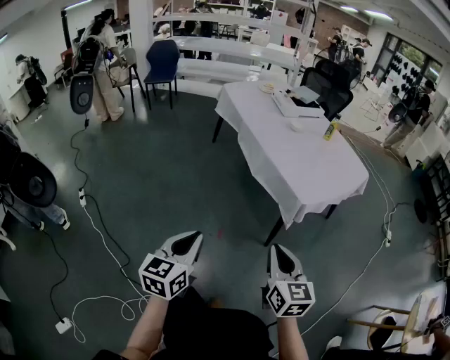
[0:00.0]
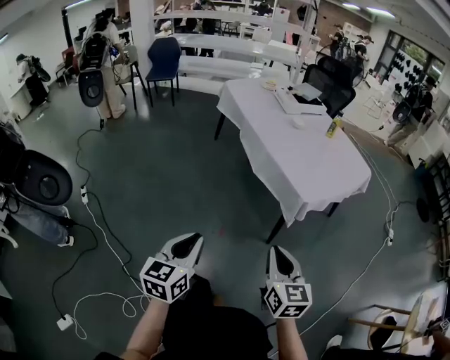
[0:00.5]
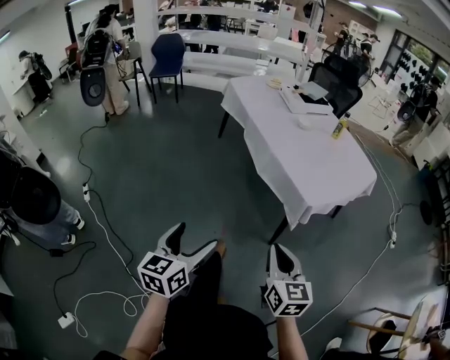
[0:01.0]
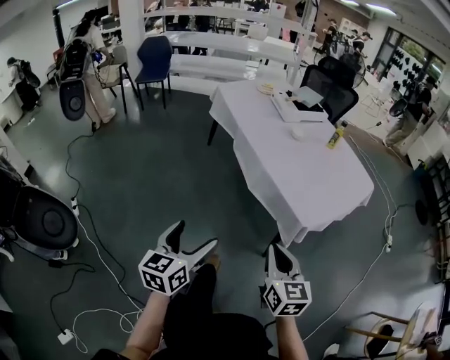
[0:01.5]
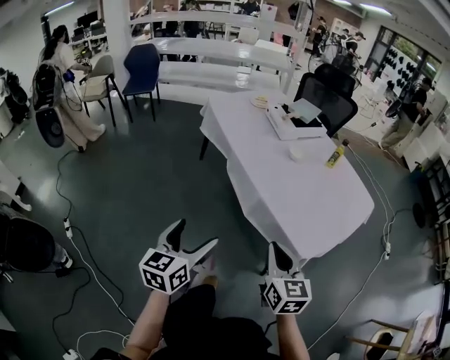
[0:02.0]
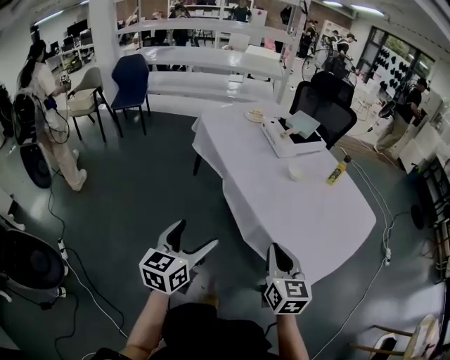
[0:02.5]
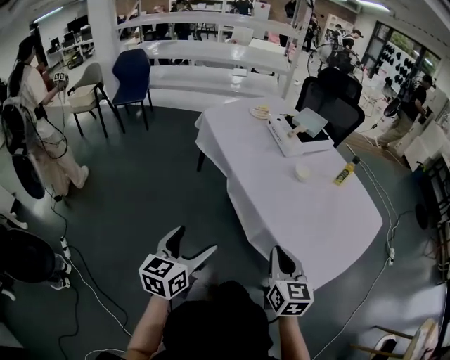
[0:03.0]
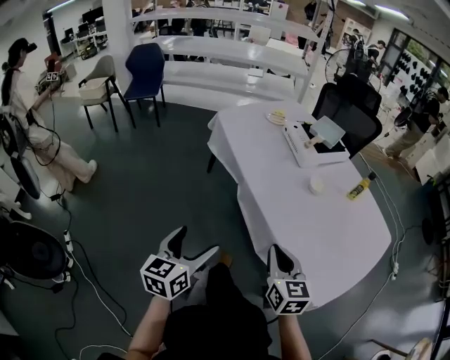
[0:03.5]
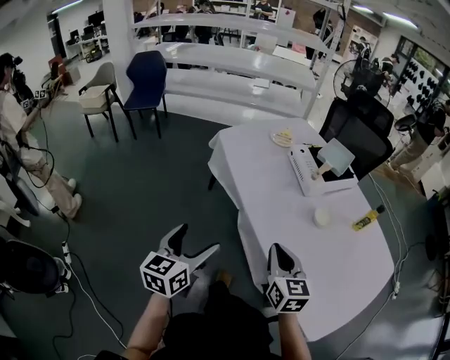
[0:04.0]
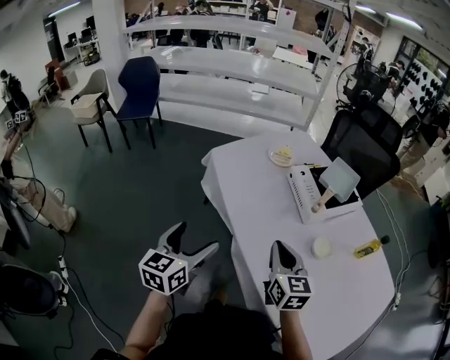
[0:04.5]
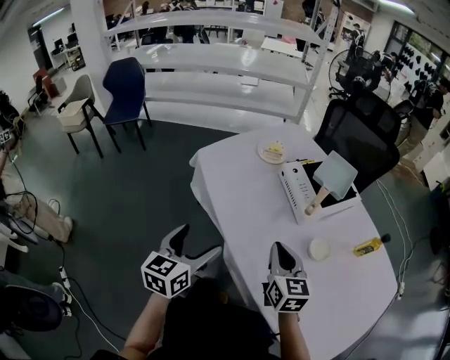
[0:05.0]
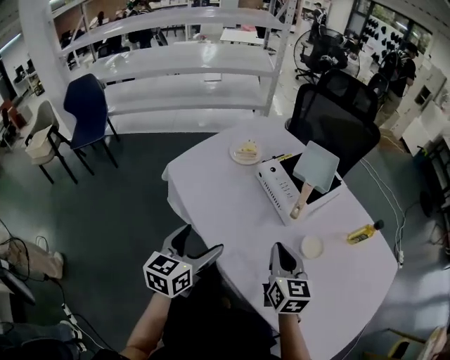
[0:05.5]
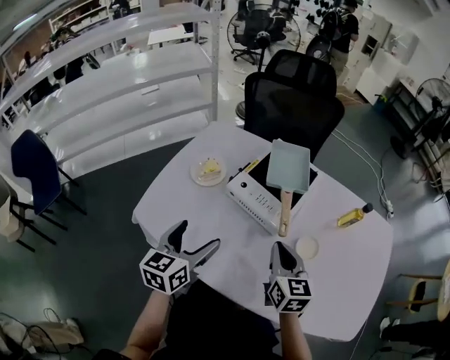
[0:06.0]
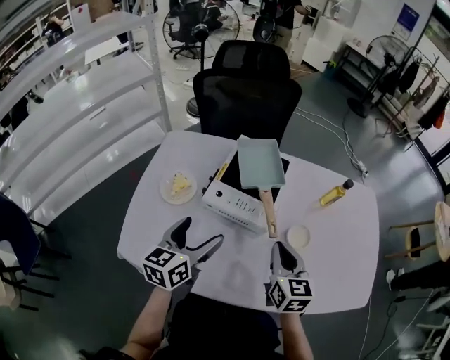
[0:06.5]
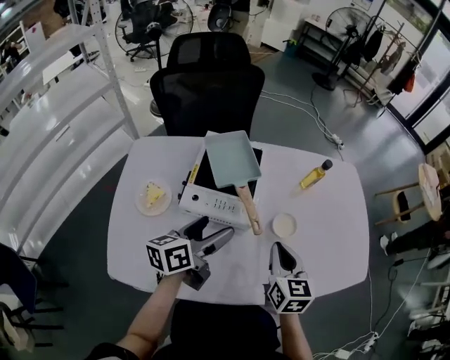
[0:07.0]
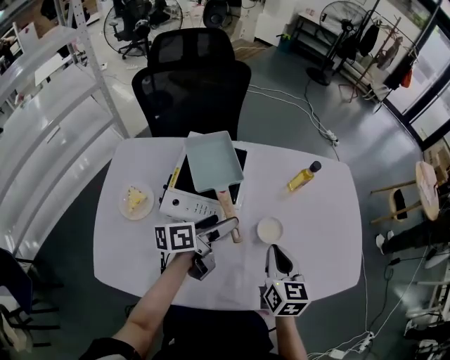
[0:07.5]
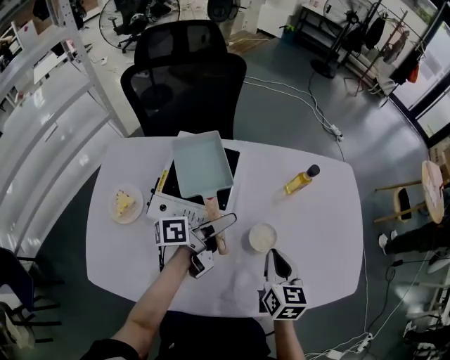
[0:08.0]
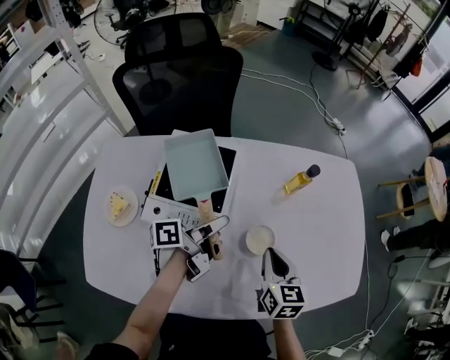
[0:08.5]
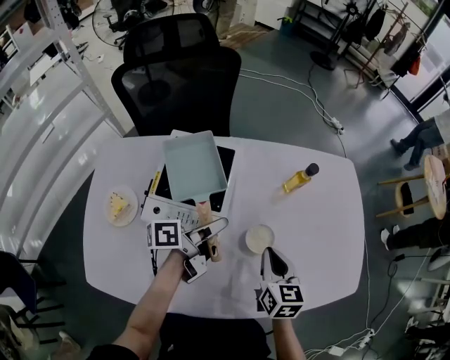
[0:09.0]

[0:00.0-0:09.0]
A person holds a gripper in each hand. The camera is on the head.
0.0 to 2.0 s: Both grippers move forward, about 30 cm. The left gripper opens its fingers.
2.0 to 4.5 s: The two grippers travel together, forward, roughly 50 cm.
4.5 to 7.0 s: The right gripper changes place by some 20 cm, and rotates about 70 degrees. Meanwhile the left gripper ends up approximately 40 cm from where it was, and turns by about 80 degrees.
7.0 to 9.0 s: Both grippers move forward, to the right and downward, roughly 15 cm. The left gripper rotates approximately 30 degrees, and closes.

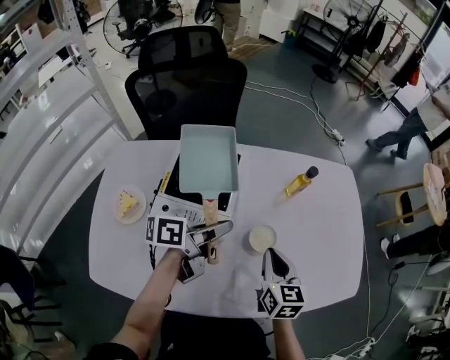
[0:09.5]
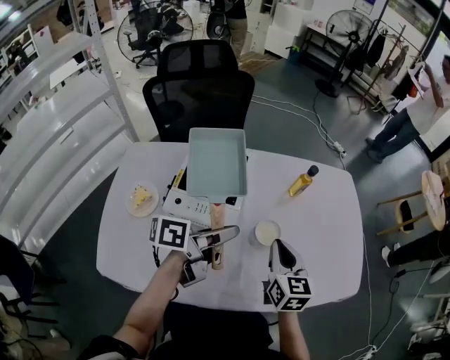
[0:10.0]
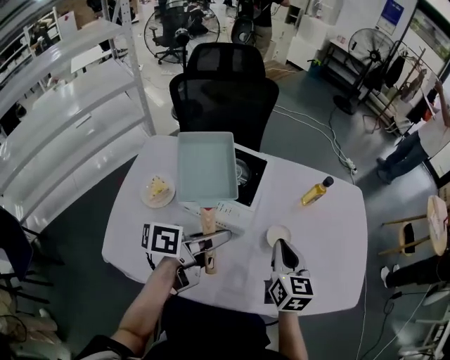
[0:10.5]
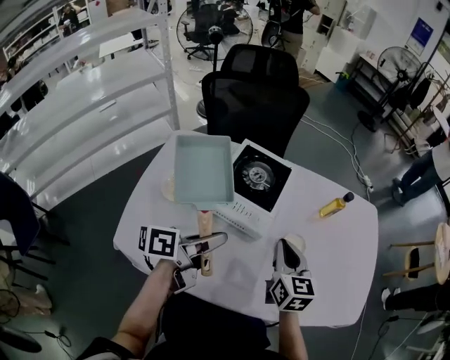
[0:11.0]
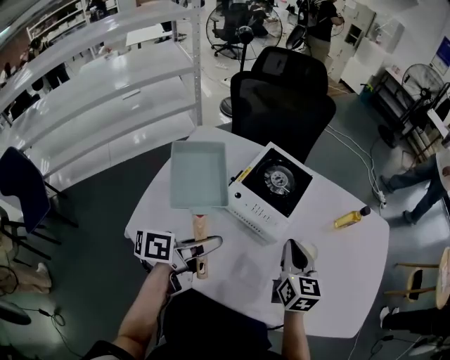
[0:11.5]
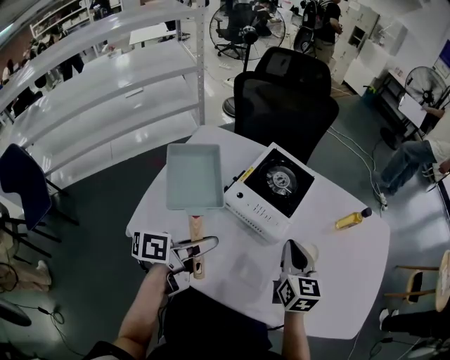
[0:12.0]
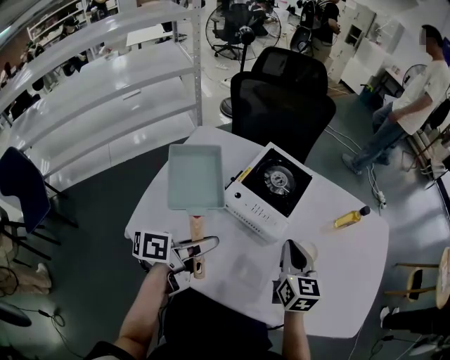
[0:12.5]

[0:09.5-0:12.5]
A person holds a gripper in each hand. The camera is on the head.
9.5 to 11.0 s: The left gripper is displaced backward and to the left by roughly 15 cm, while the right gripper travels to the left and upward by approximately 10 cm.
11.0 to 12.5 s: The left gripper moves to the left, approximately 5 cm.

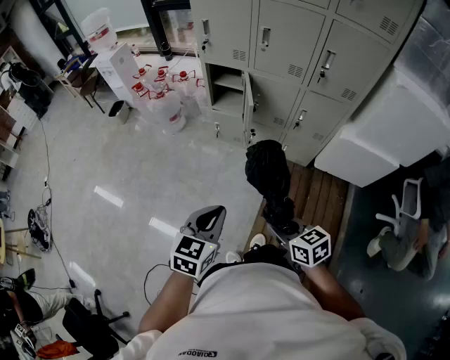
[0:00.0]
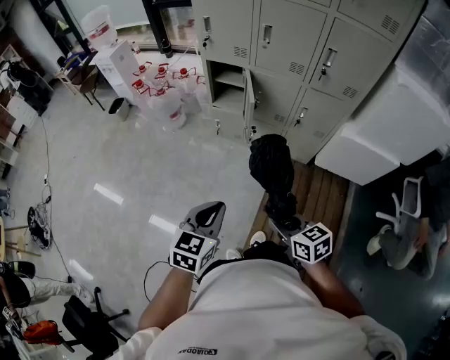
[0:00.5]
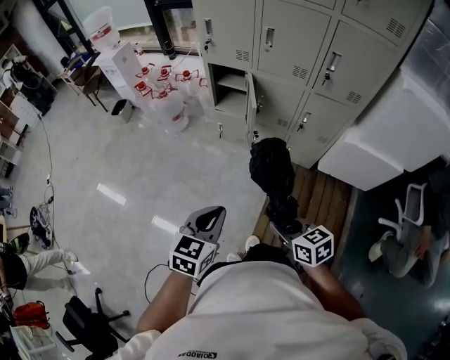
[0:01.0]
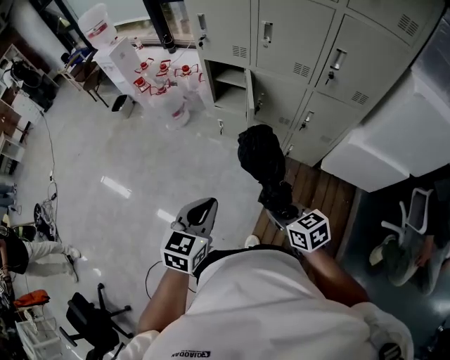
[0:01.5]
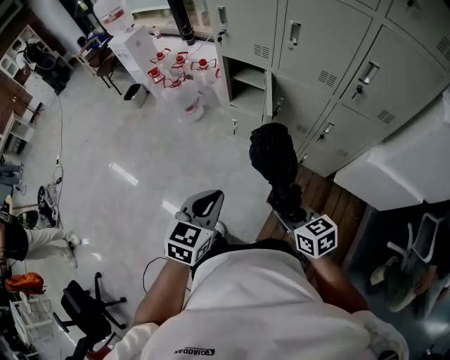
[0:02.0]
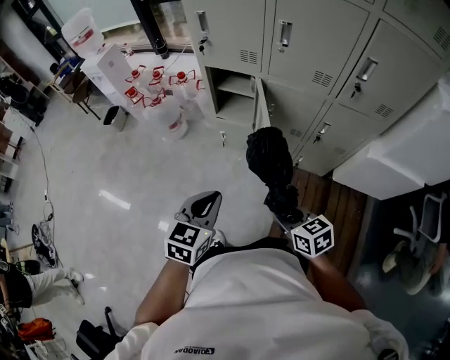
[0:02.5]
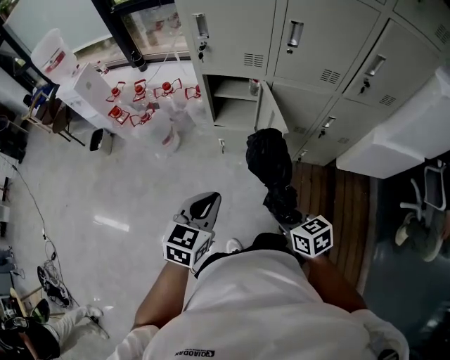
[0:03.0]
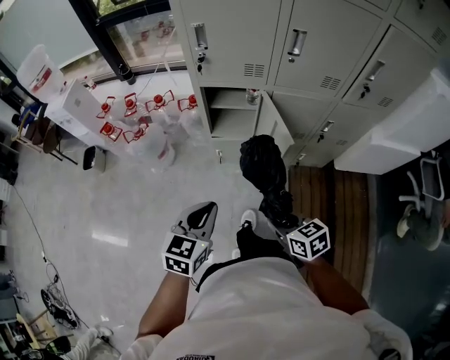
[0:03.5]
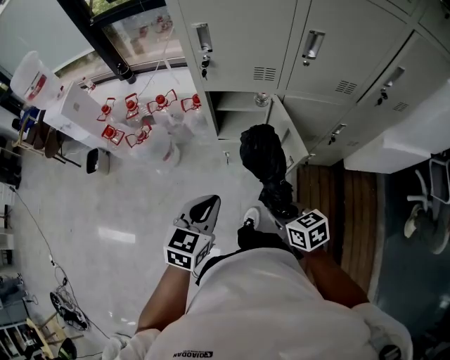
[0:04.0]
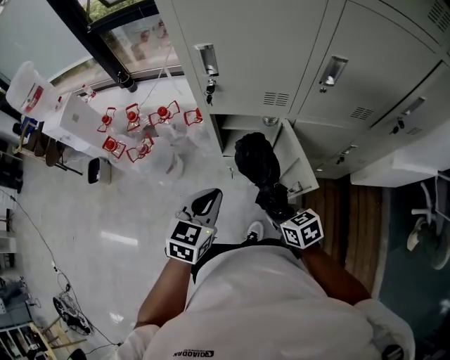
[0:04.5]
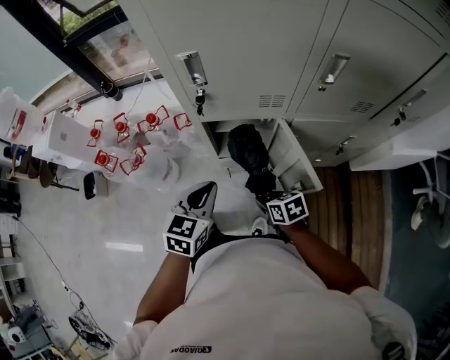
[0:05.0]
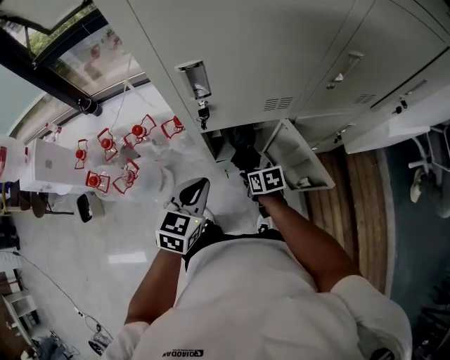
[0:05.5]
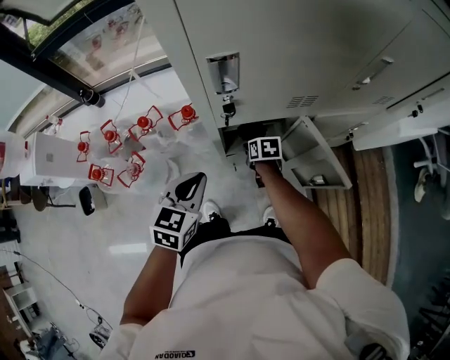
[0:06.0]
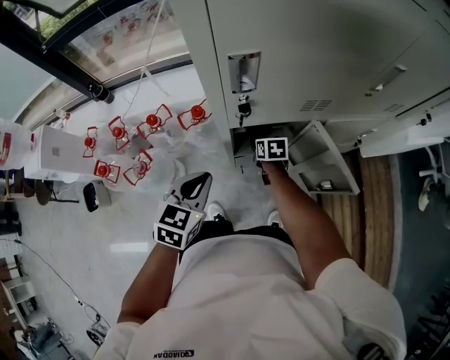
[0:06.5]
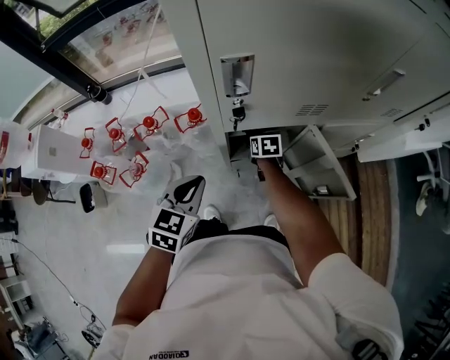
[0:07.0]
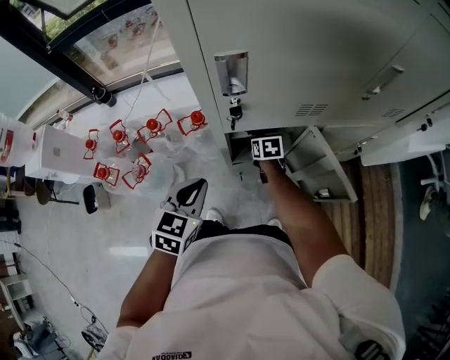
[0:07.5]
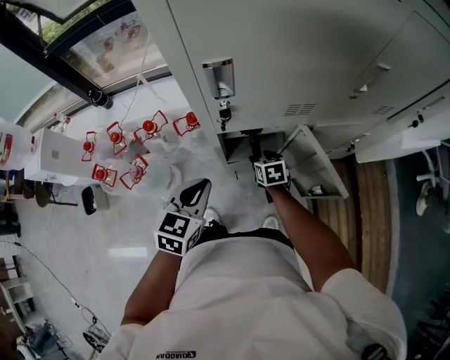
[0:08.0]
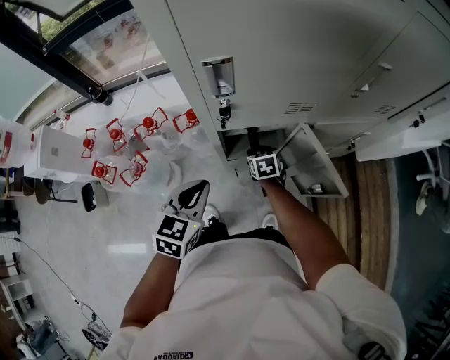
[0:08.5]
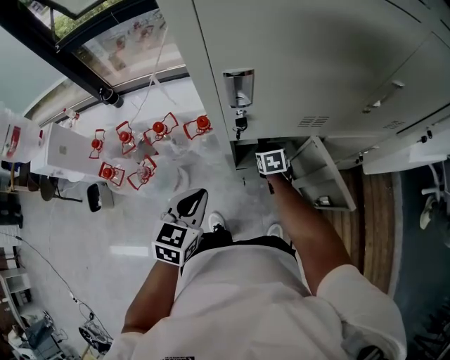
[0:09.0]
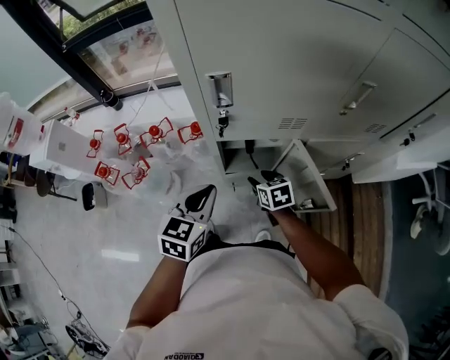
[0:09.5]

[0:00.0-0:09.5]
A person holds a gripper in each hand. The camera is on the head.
0.0 to 2.0 s: The two grippers go about 15 cm forward.
2.0 to 4.0 s: Both grippers move forward and to the left, some 35 cm. The right gripper turns by approximately 20 degrees. Meanwhile the left gripper rotates some 20 degrees.
4.0 to 5.5 s: The left gripper moves forward, some 25 cm. The right gripper is displaced forward and downward by some 35 cm, and rotates approximately 30 degrees.
5.5 to 7.5 s: The left gripper is displaced to the left by roughly 5 cm. Meanwhile the right gripper travels forward by about 15 cm, and opens up.
7.5 to 9.5 s: The left gripper goes roughly 10 cm to the right and upward; the right gripper goes forward and backward, roughly 15 cm each way, reversing 2 times.

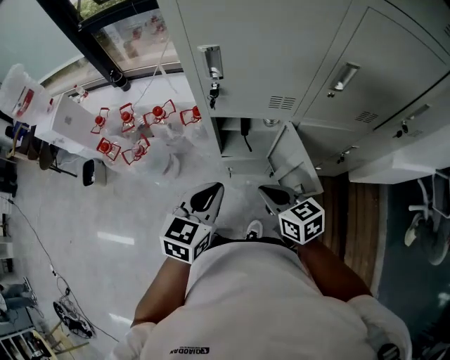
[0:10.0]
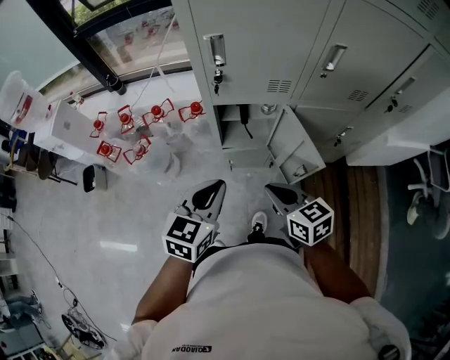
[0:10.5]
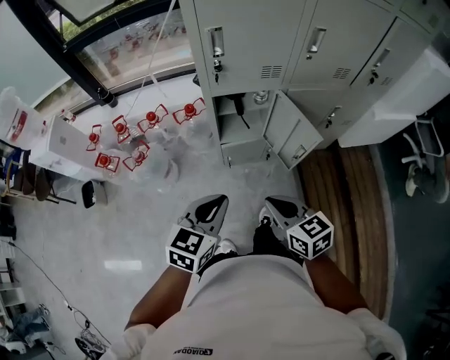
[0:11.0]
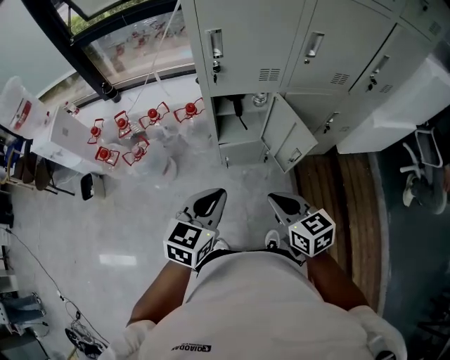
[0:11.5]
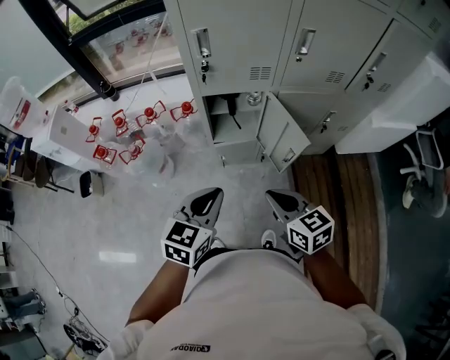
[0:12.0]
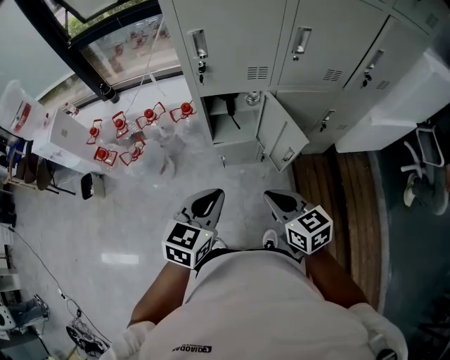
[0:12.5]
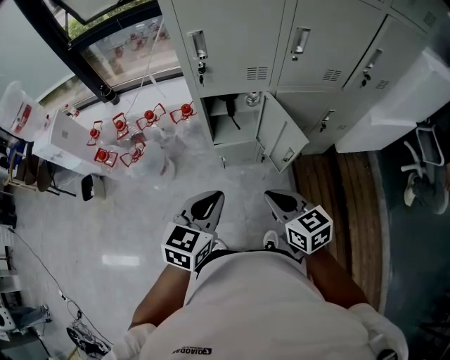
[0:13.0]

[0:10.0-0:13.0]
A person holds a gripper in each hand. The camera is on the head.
10.0 to 11.5 s: Both grippers travel together backward, about 15 cm.
11.5 to 13.0 s: The grippers stay close to where they were, moving slightly.

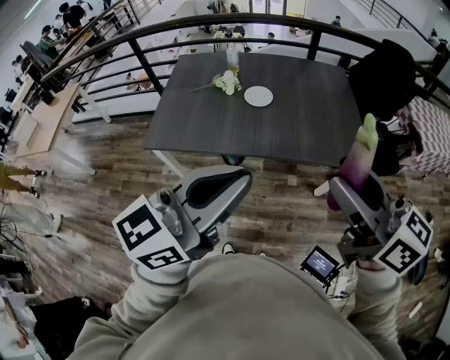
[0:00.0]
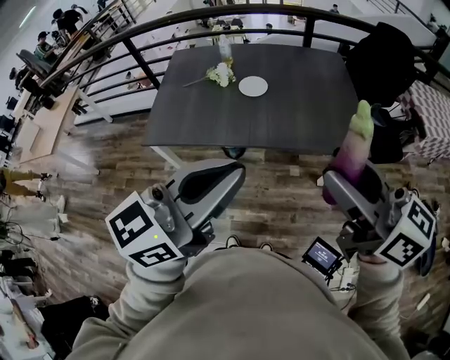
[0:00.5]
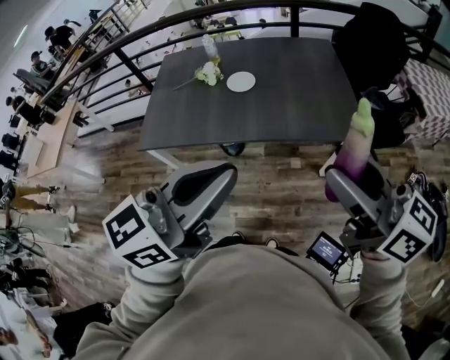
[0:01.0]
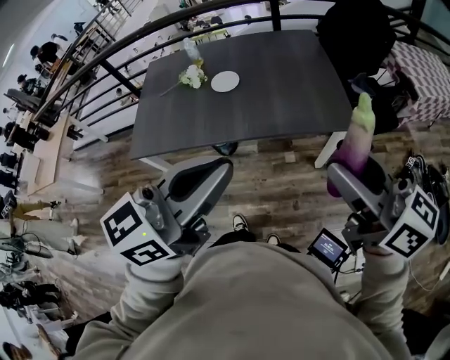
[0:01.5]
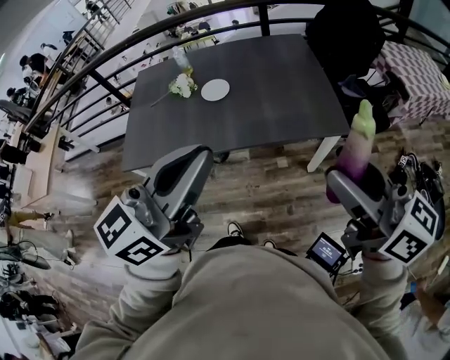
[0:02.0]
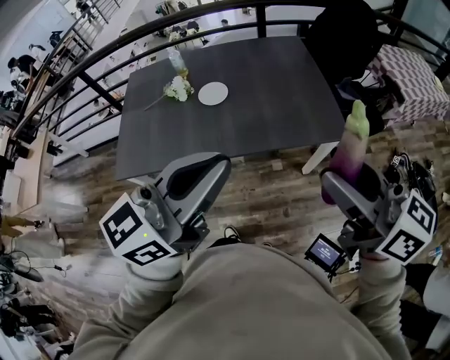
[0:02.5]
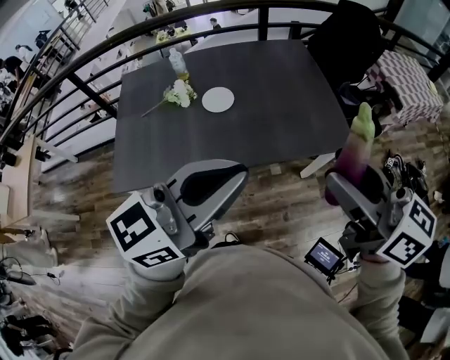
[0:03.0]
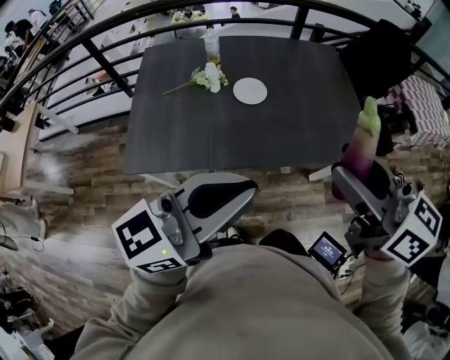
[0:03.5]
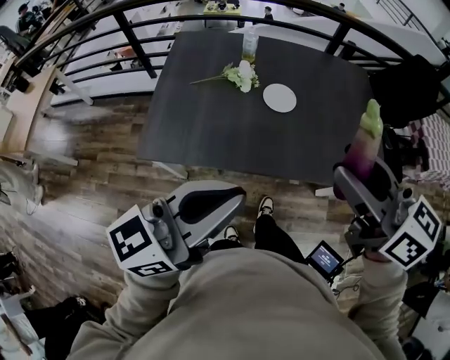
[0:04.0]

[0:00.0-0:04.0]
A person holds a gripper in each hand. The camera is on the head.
0.0 to 2.0 s: The left gripper moves to the right and forward, roughly 10 cm. Meanwhile the right gripper heads to the right, covering approximately 15 cm.
2.0 to 4.0 s: The right gripper moves to the left and forward, roughly 35 cm; the left gripper shifts approximately 25 cm to the left.
